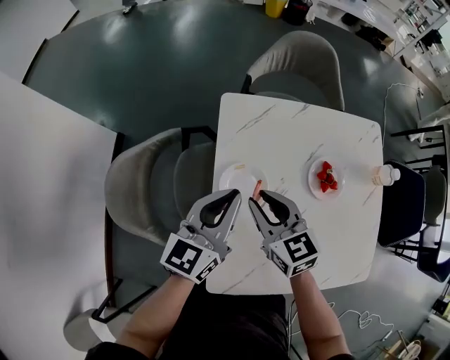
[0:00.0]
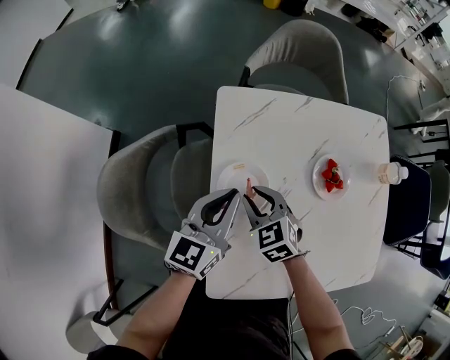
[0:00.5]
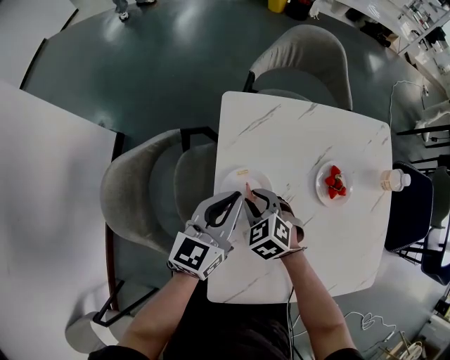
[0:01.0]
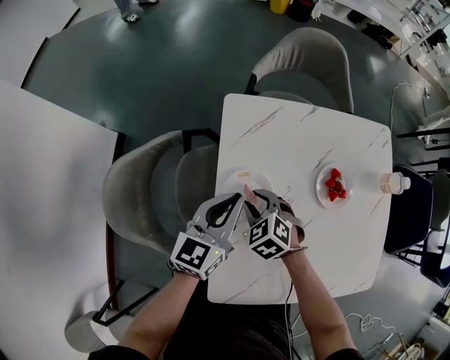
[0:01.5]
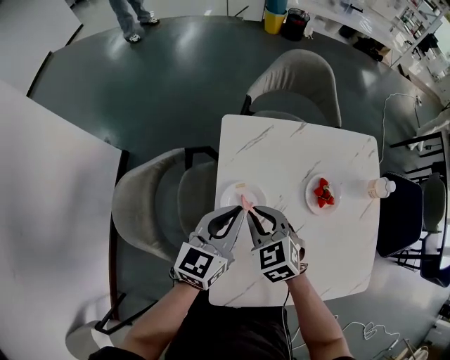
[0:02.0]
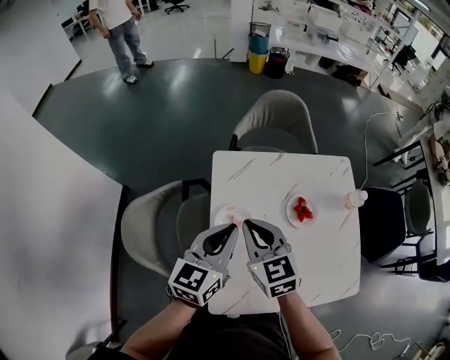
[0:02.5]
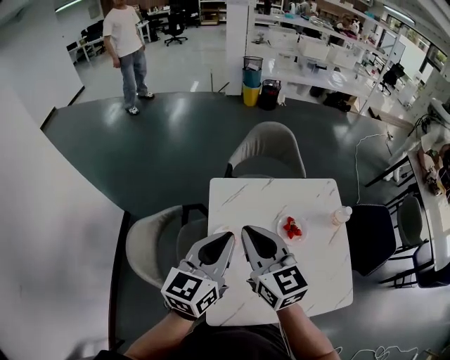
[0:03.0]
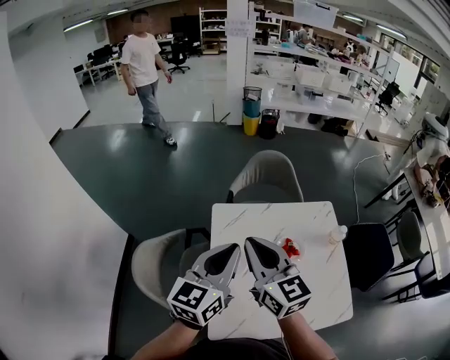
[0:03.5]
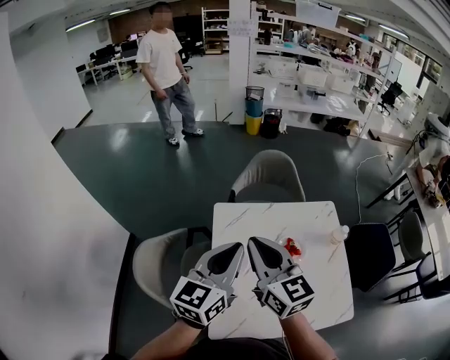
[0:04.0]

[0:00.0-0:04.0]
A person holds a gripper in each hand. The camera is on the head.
0:00.0 to 0:02.0: The right gripper goes downward and returns, approximately 15 cm each way, and rotates about 30 degrees, while the left gripper goes downward and returns, some 10 cm each way.
0:02.0 to 0:04.0: The grippers both shift upward by approximately 30 cm. The right gripper points its fingers about 40 degrees further upward.

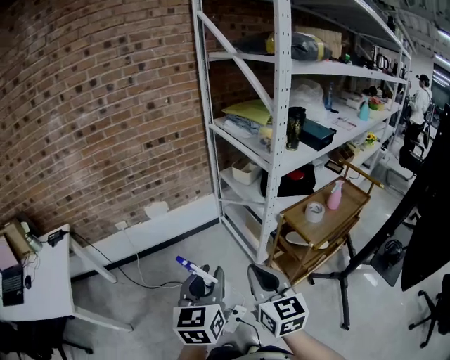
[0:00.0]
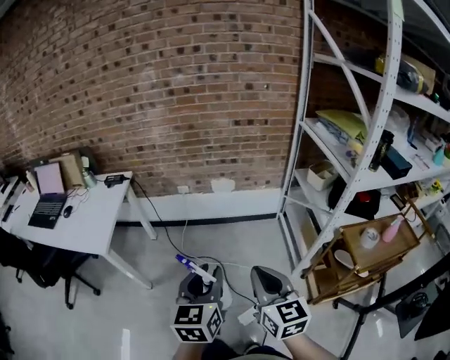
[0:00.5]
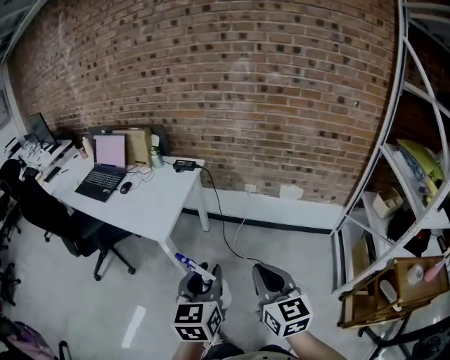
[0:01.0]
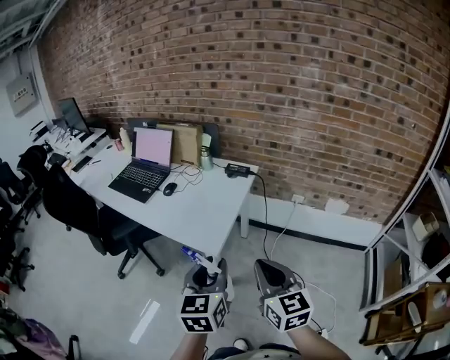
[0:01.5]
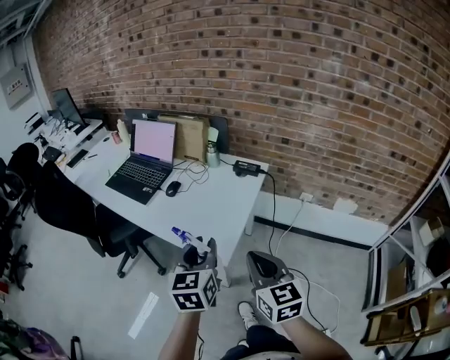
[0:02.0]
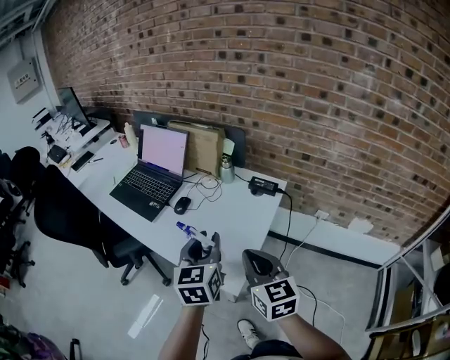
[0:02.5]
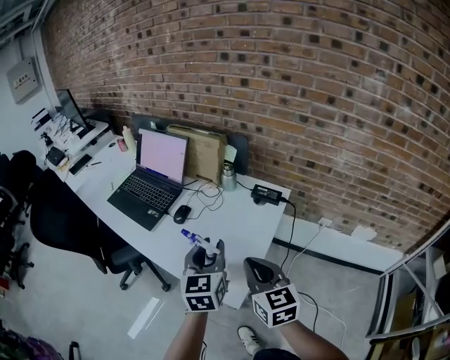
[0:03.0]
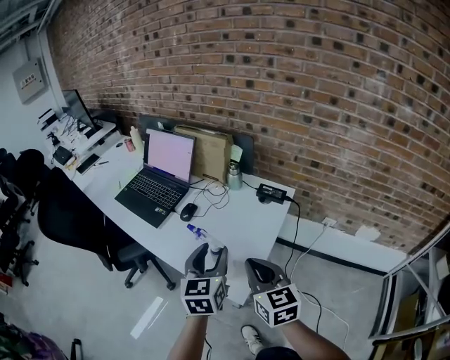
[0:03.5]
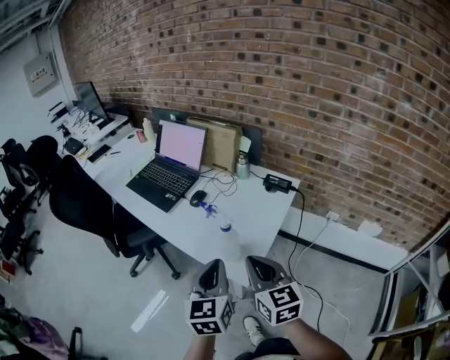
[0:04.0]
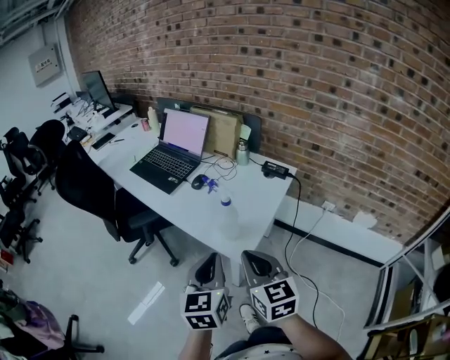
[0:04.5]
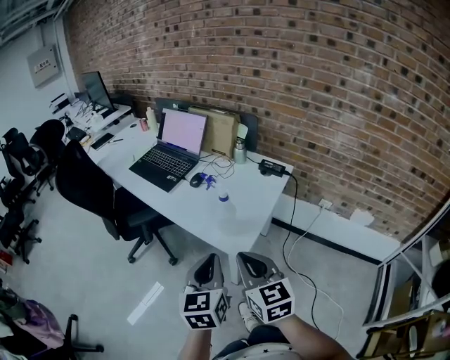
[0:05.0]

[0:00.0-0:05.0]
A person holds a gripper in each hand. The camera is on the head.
0:00.0 to 0:02.5: The pair of grippers is taken approximately 80 cm. The right gripper rotates some 60 degrees, while the left gripper turns by roughly 60 degrees.
0:02.5 to 0:05.0: The right gripper goes about 15 cm backward and to the left, while the left gripper heads backward, covering approximately 20 cm, and closes.

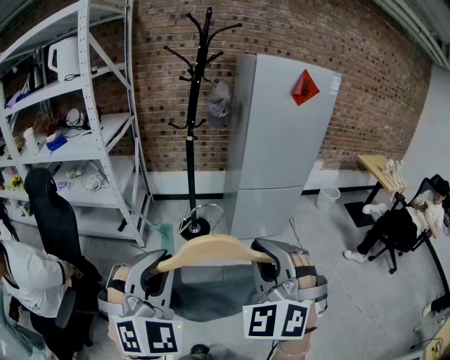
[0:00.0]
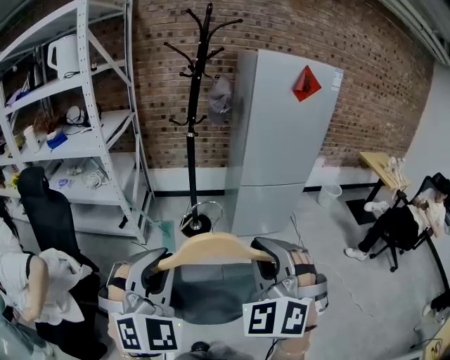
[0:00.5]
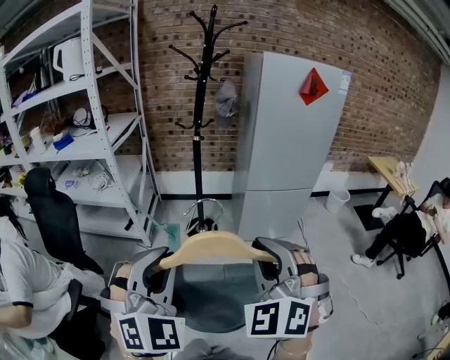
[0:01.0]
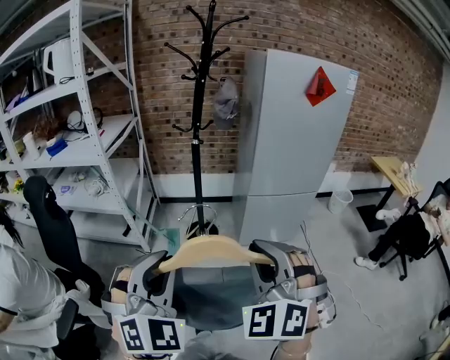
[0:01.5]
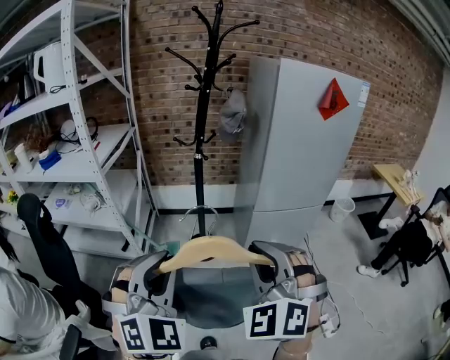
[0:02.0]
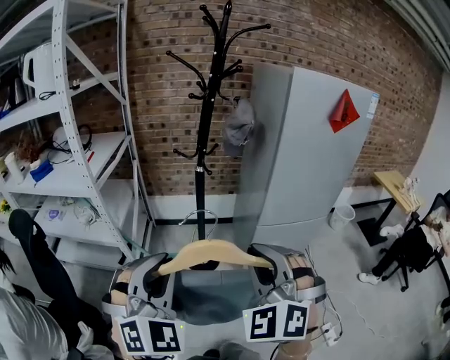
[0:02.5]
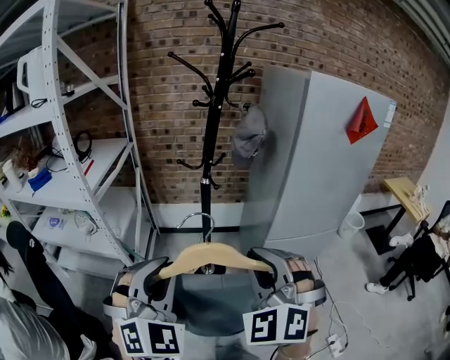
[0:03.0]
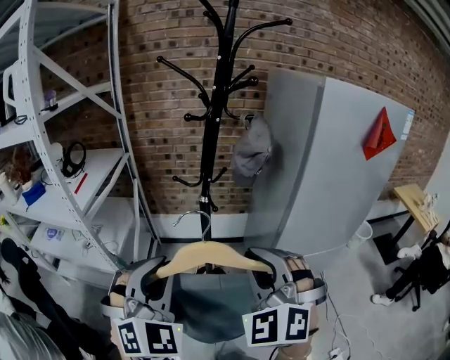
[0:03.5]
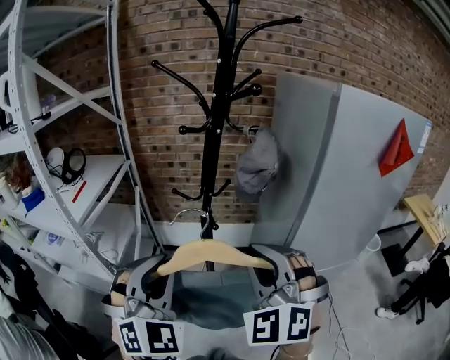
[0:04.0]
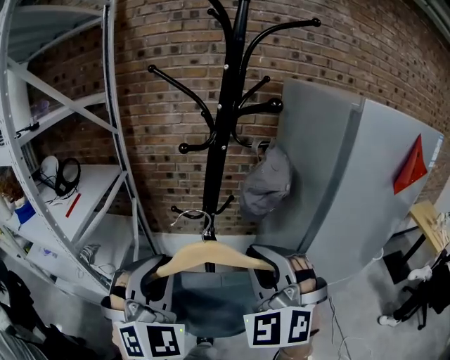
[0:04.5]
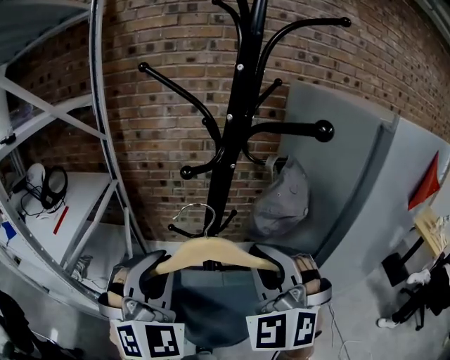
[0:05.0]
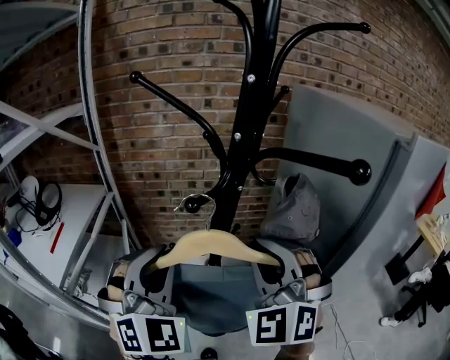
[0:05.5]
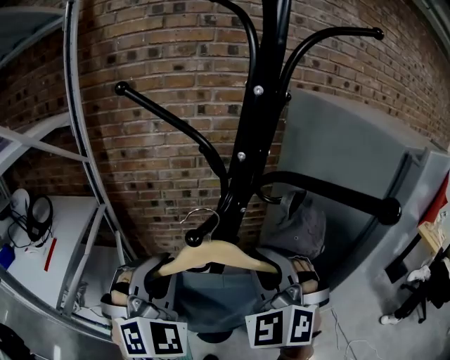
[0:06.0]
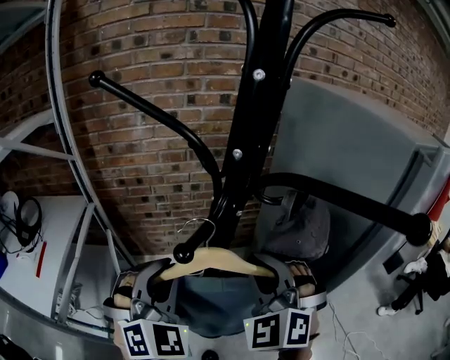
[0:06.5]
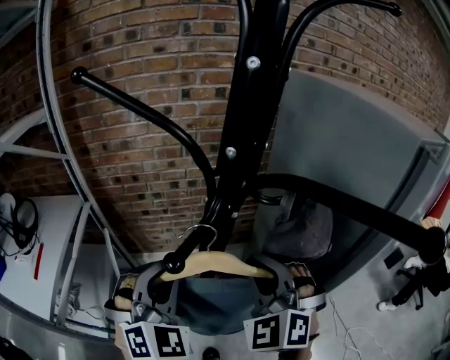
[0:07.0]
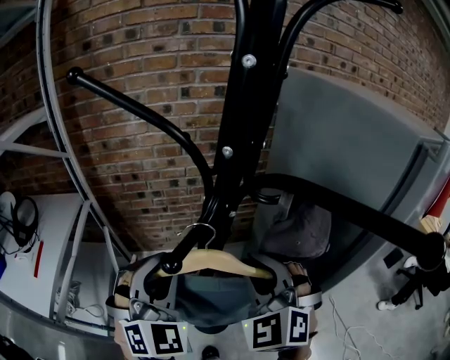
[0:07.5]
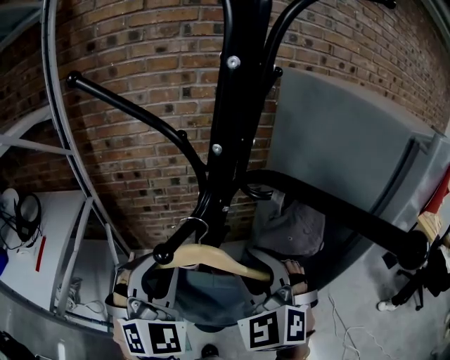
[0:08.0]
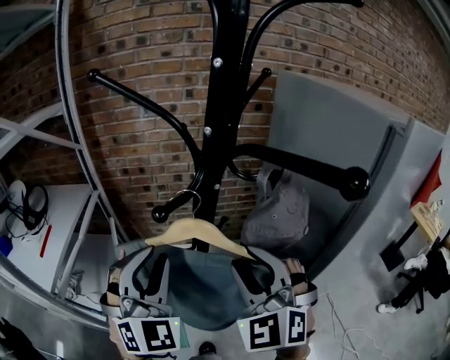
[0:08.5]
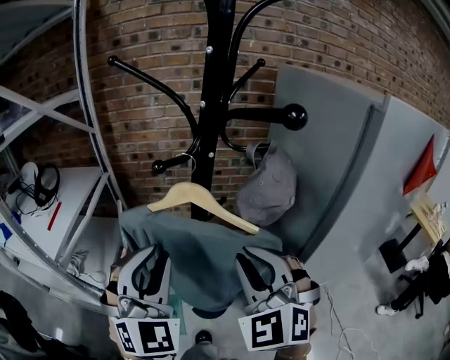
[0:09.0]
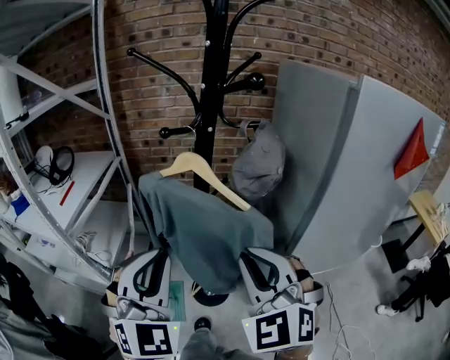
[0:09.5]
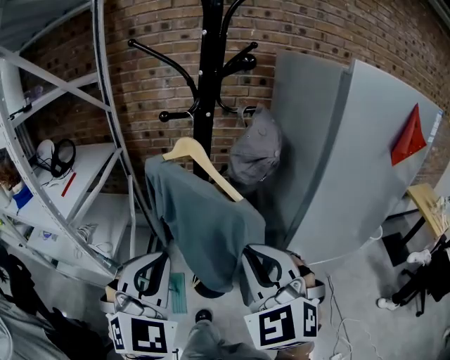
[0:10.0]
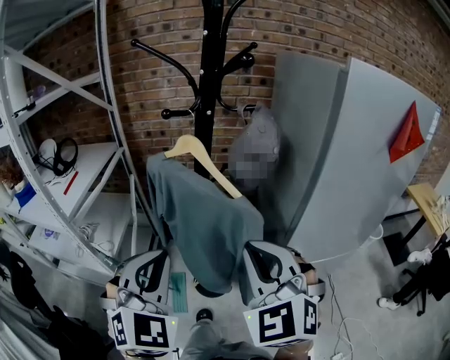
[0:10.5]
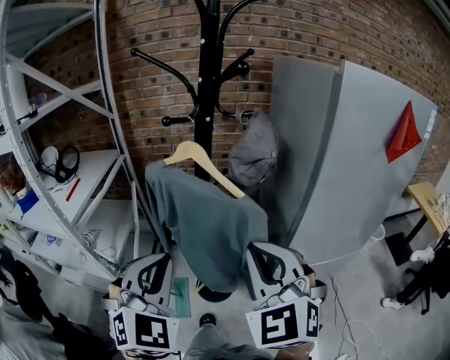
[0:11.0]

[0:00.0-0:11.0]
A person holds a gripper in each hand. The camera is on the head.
0:00.0 to 0:02.0: Both grippers travel together forward, approximately 20 cm.
0:02.0 to 0:03.5: The grippers both shift forward by about 25 cm.
0:03.5 to 0:05.5: The two grippers go approximately 30 cm forward.
0:05.5 to 0:07.5: The left gripper heads forward and downward, covering roughly 10 cm. Meanwhile the right gripper is displaced downward and forward by about 10 cm.
0:07.5 to 0:09.0: The two grippers go about 15 cm backward.
0:09.0 to 0:11.0: Both grippers move backward, roughly 15 cm. The left gripper closes its fingers.

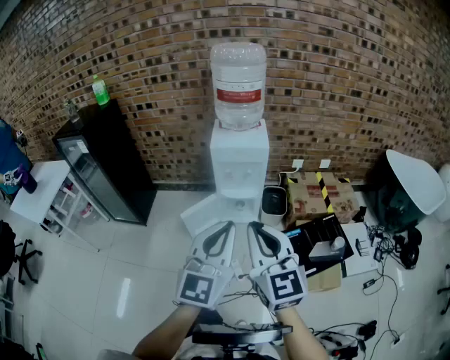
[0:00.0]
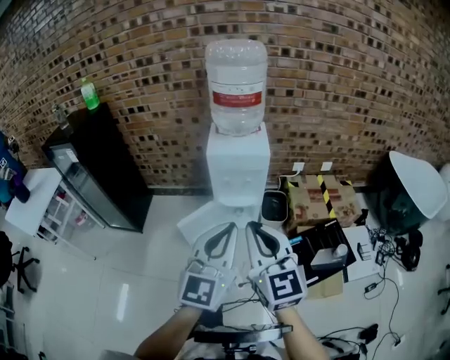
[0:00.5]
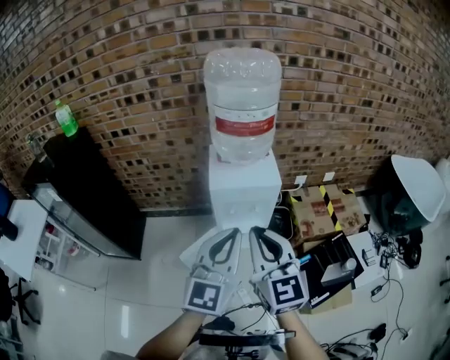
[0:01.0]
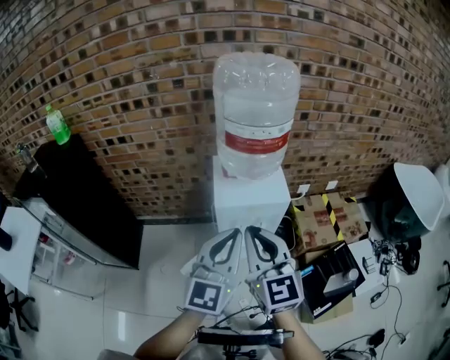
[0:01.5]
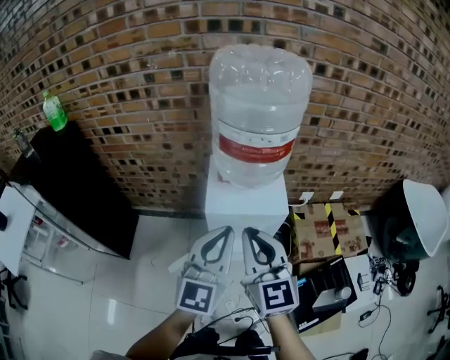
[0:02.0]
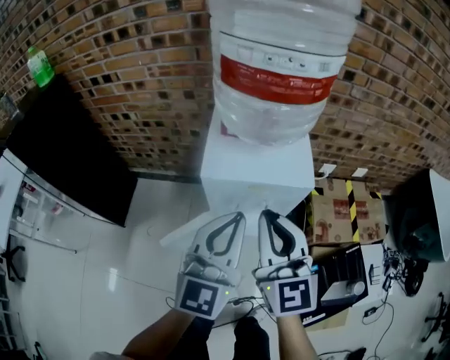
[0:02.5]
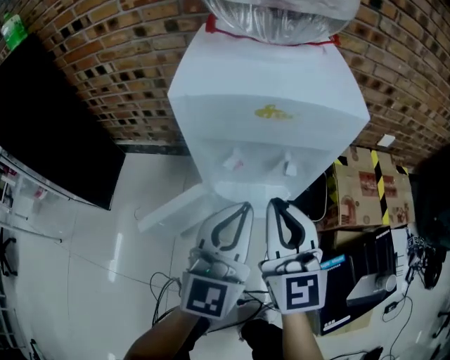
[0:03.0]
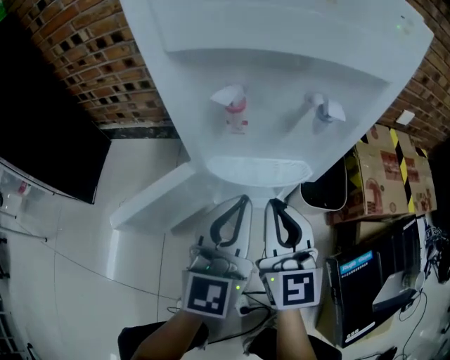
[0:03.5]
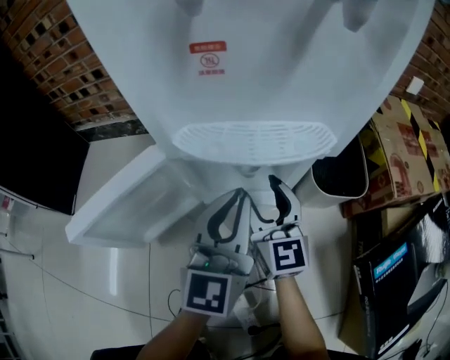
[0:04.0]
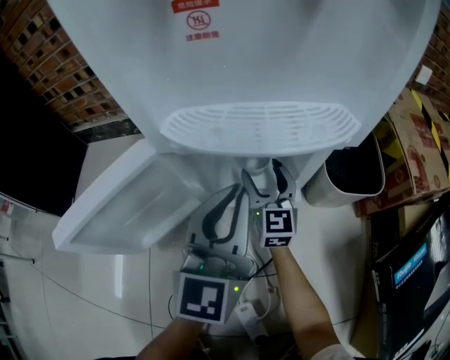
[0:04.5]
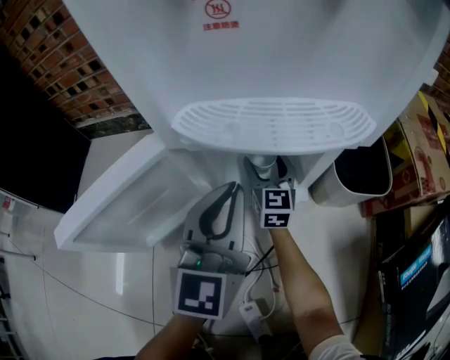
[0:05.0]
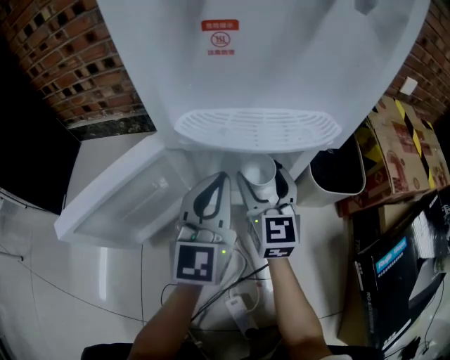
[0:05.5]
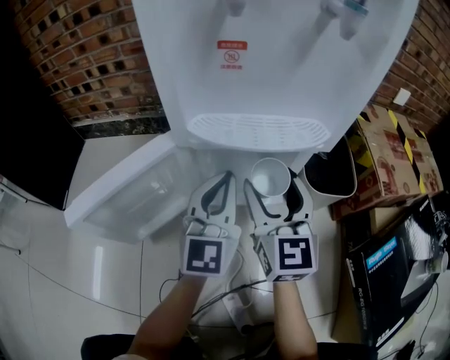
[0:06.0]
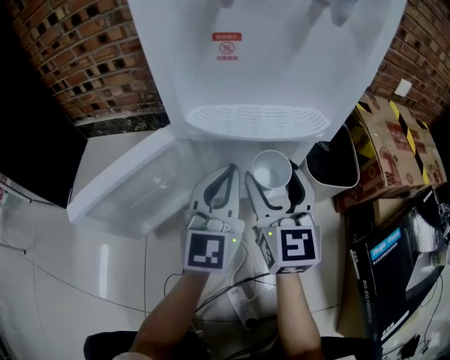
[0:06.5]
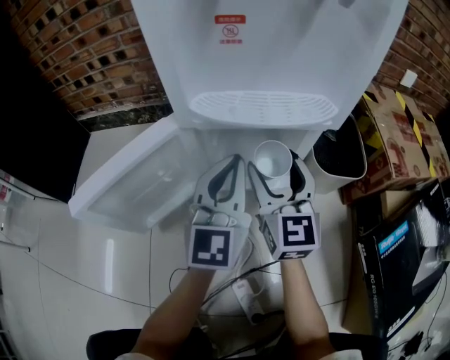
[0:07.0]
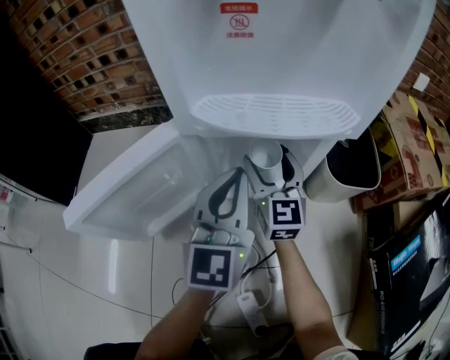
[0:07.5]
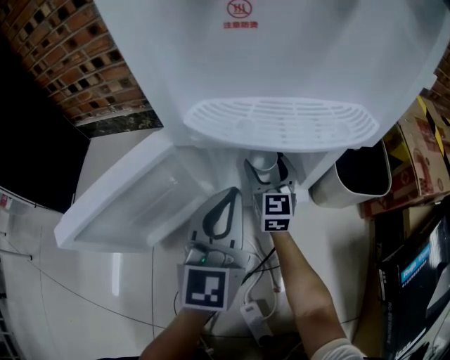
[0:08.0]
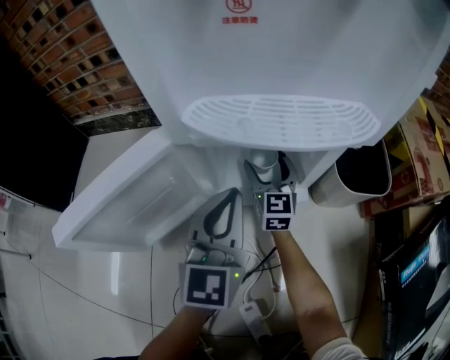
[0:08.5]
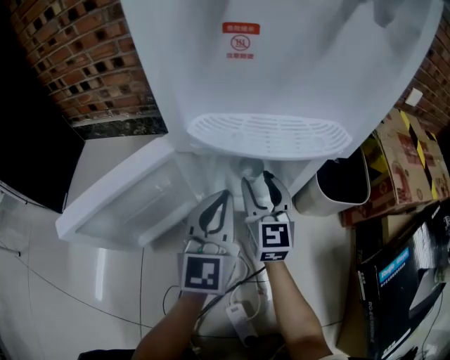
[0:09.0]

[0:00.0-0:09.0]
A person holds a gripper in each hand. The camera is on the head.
0:00.0 to 0:02.0: Both grippers travel together forward, roughly 40 cm.
0:02.0 to 0:04.5: The two grippers go roughly 80 cm downward. The right gripper opens up.
0:04.5 to 0:07.0: The right gripper moves upward and backward, roughly 15 cm.
0:07.0 to 0:09.0: The left gripper goes some 5 cm downward; the right gripper travels downward and forward by about 10 cm.
